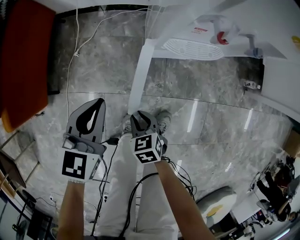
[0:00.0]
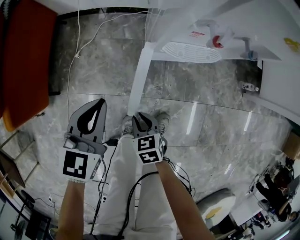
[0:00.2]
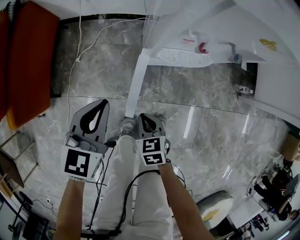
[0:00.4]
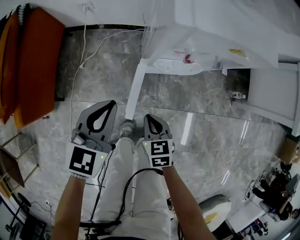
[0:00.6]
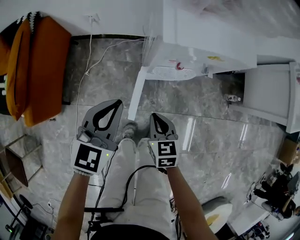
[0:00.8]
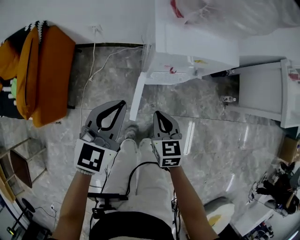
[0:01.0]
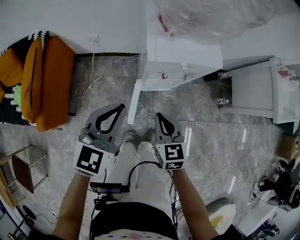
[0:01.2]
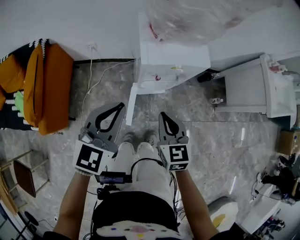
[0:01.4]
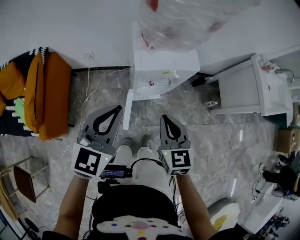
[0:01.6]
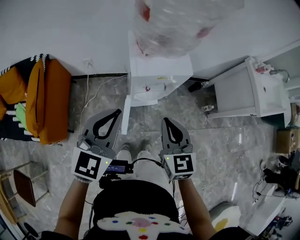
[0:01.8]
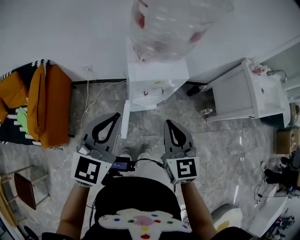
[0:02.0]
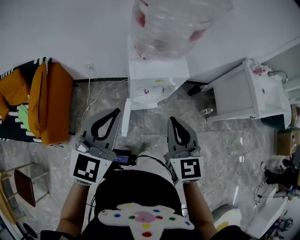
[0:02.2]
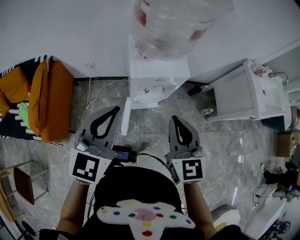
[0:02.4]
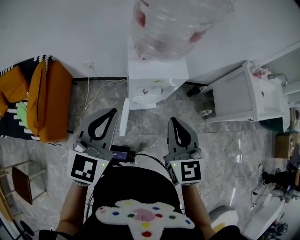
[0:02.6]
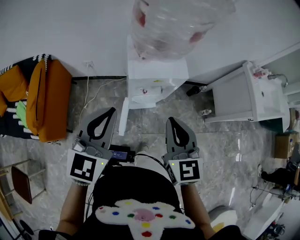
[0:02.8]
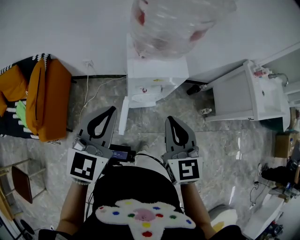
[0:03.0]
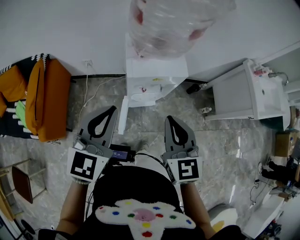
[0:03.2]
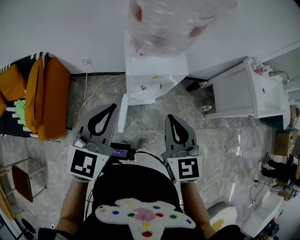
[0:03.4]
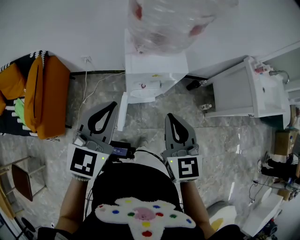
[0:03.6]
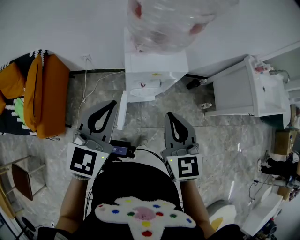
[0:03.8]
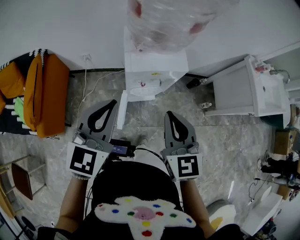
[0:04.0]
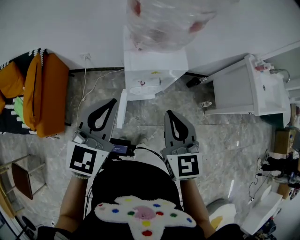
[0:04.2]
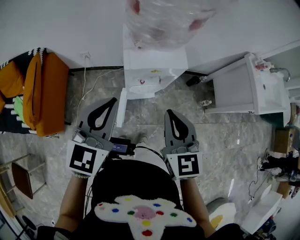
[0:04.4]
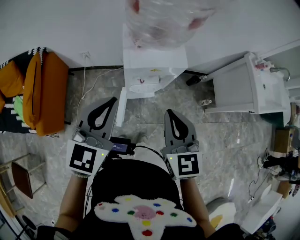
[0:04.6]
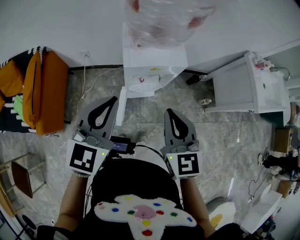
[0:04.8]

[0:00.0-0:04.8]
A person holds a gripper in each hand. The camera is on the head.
0:00.0 to 0:01.6: Both grippers move upward, roughly 40 cm. The right gripper angles its fingers upward, by approximately 30 degrees, and closes its fingers; the left gripper rotates approximately 30 degrees.
0:01.6 to 0:03.2: The left gripper moves upward, about 5 cm, while the right gripper travels upward by some 10 cm.
0:03.2 to 0:04.8: The grippers stay close to where they were, moving slightly.

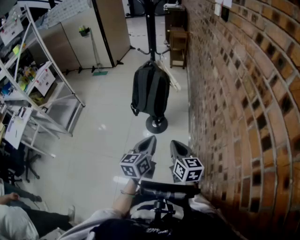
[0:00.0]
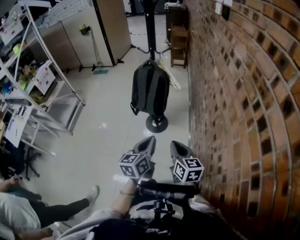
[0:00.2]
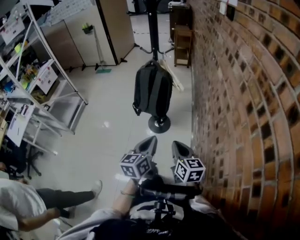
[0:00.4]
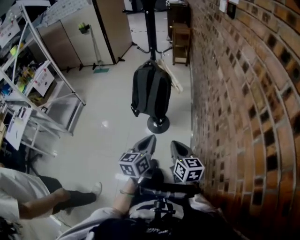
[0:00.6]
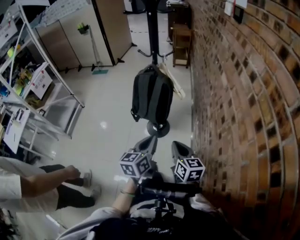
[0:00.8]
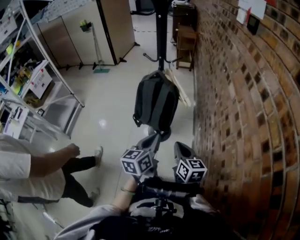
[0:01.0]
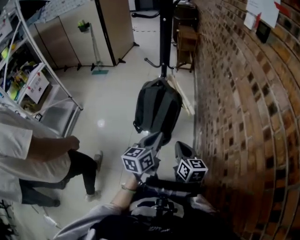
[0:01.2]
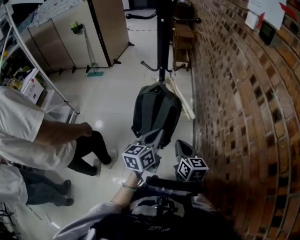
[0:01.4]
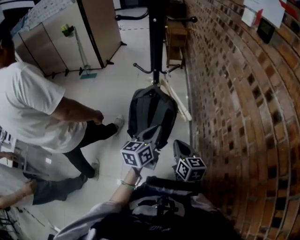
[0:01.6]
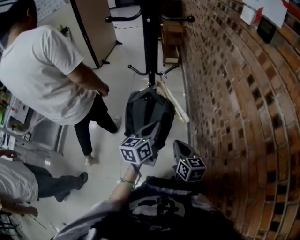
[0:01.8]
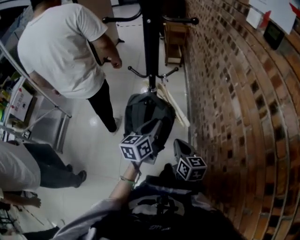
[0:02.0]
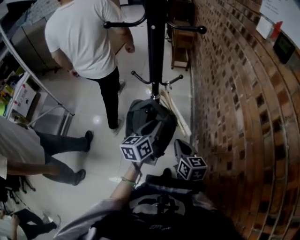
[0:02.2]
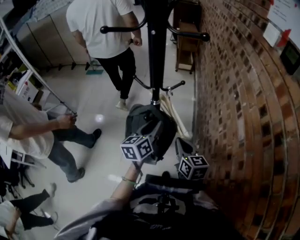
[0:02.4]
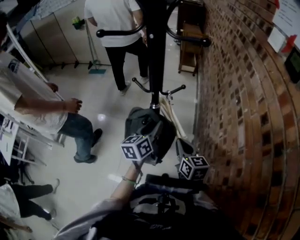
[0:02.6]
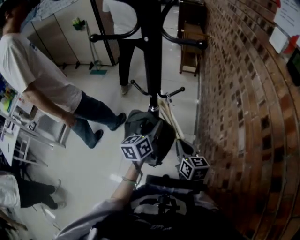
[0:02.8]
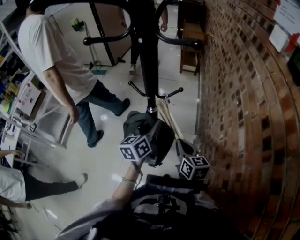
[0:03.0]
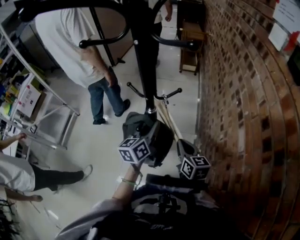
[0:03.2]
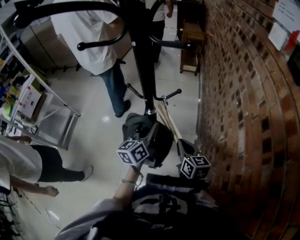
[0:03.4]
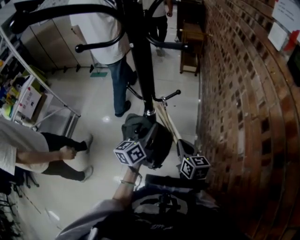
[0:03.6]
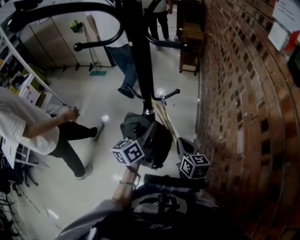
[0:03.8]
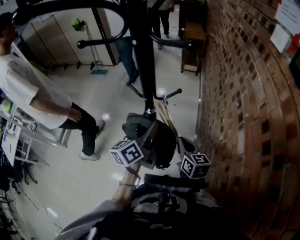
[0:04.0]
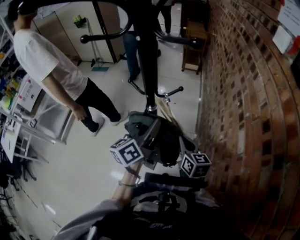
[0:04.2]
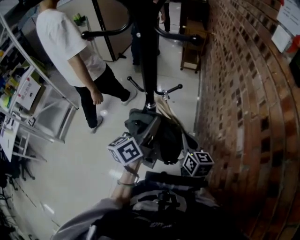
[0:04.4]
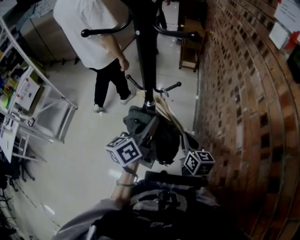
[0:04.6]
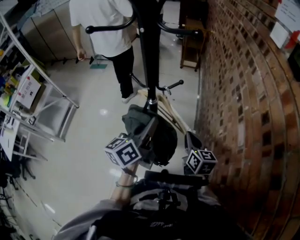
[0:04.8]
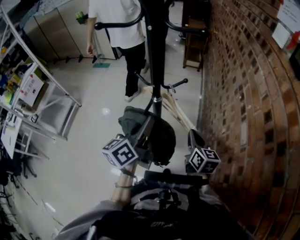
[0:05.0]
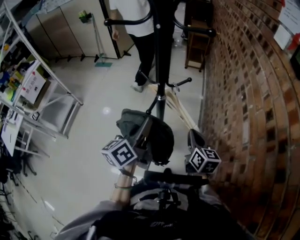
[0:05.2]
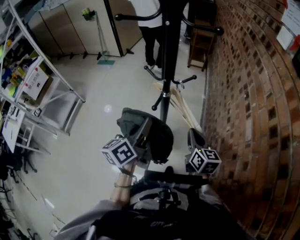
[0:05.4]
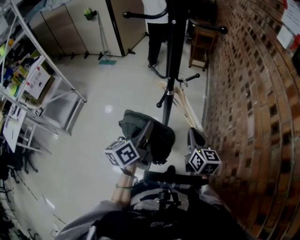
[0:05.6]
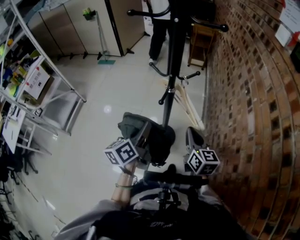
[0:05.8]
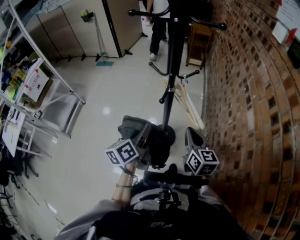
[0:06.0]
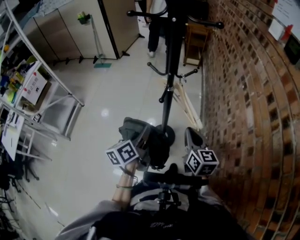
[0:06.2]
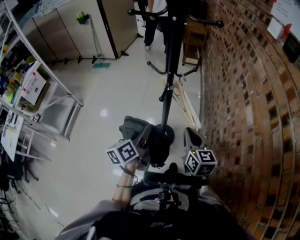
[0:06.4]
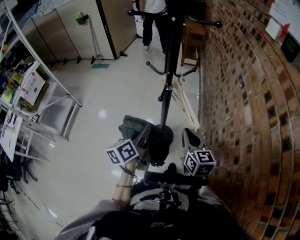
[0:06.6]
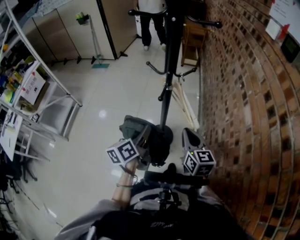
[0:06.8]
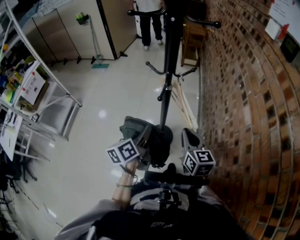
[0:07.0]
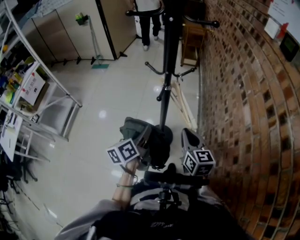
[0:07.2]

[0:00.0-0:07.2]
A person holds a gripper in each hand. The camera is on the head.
0:00.0 to 0:01.4: Both grippers move forward, roughly 30 cm.
0:01.4 to 0:02.8: The two grippers go roughly 20 cm forward. The left gripper opens.
0:02.8 to 0:04.4: The left gripper moves upward, about 10 cm, rotates about 20 degrees, and closes.
0:04.4 to 0:05.8: The right gripper travels backward and to the left by approximately 10 cm. The left gripper goes approximately 15 cm to the left, backward and downward.
0:05.8 to 0:07.2: The grippers move only a little.

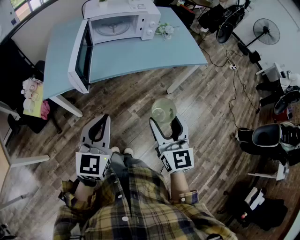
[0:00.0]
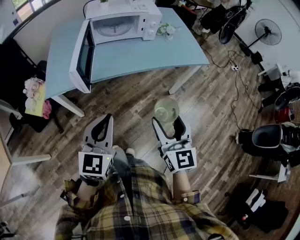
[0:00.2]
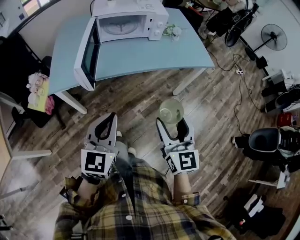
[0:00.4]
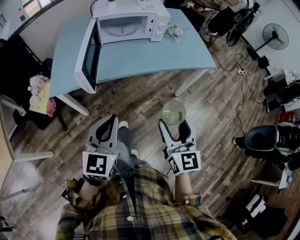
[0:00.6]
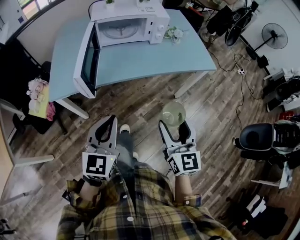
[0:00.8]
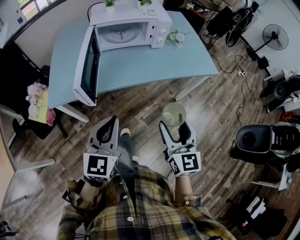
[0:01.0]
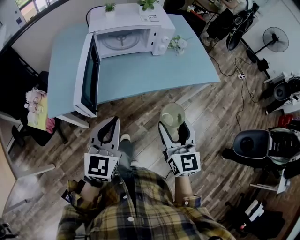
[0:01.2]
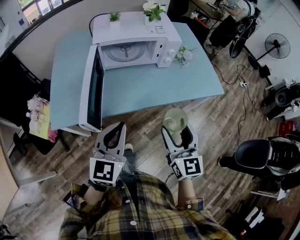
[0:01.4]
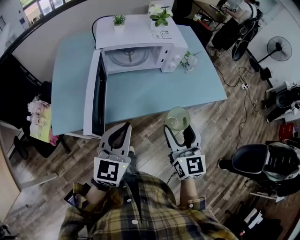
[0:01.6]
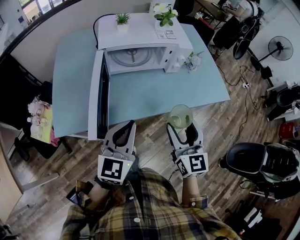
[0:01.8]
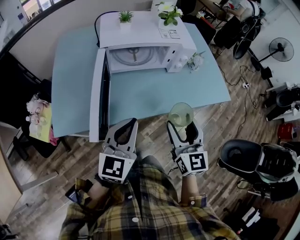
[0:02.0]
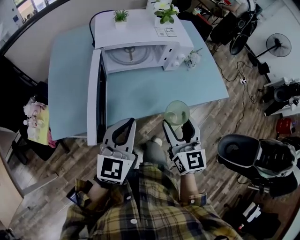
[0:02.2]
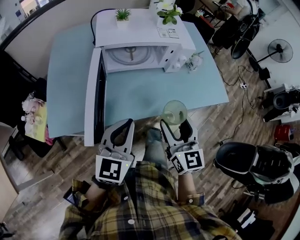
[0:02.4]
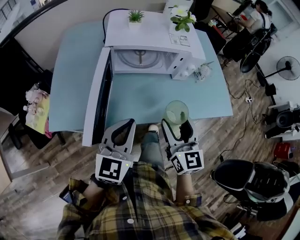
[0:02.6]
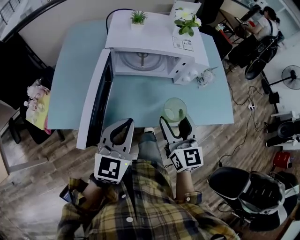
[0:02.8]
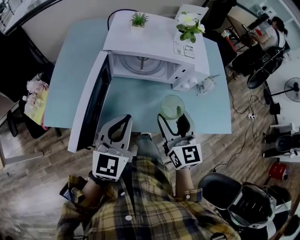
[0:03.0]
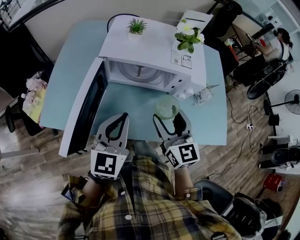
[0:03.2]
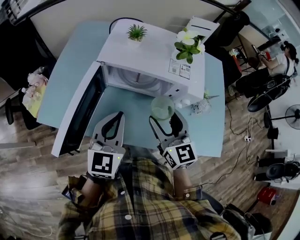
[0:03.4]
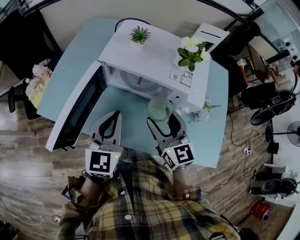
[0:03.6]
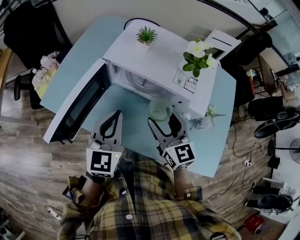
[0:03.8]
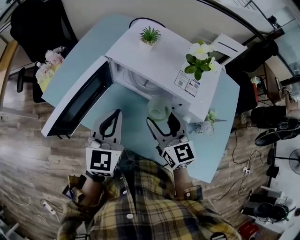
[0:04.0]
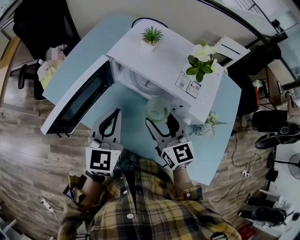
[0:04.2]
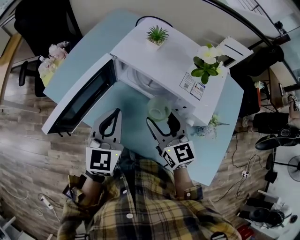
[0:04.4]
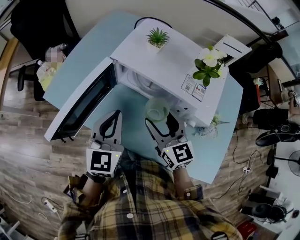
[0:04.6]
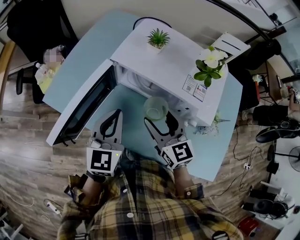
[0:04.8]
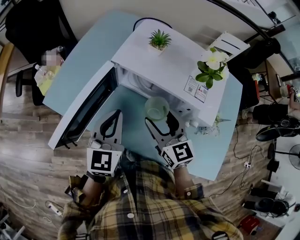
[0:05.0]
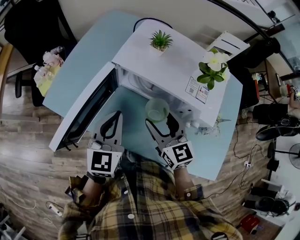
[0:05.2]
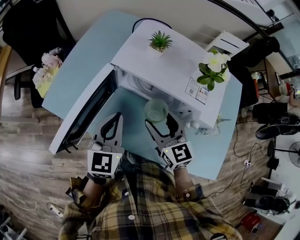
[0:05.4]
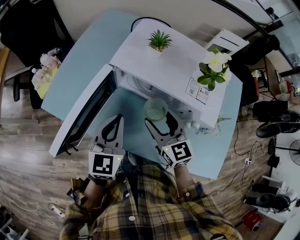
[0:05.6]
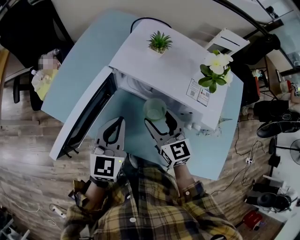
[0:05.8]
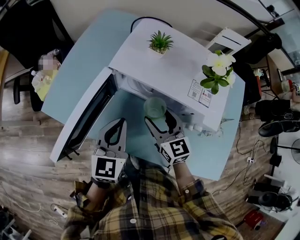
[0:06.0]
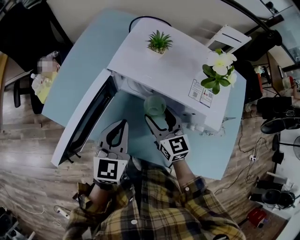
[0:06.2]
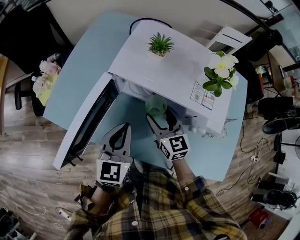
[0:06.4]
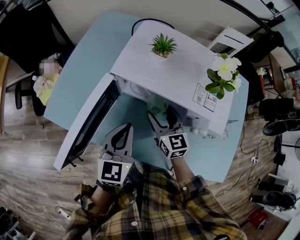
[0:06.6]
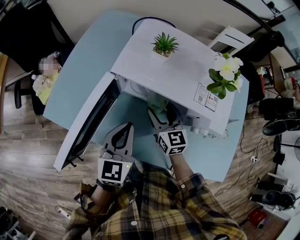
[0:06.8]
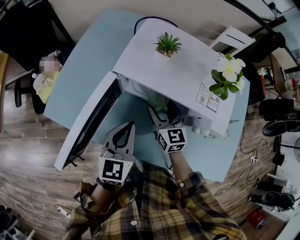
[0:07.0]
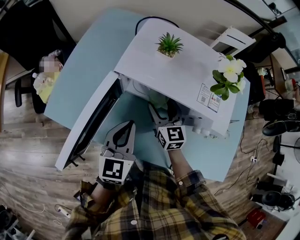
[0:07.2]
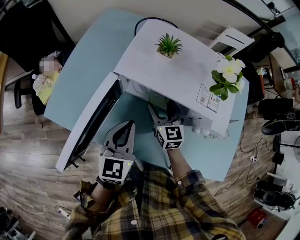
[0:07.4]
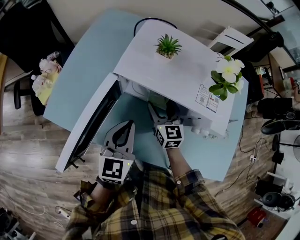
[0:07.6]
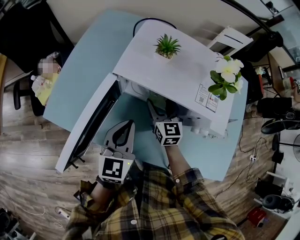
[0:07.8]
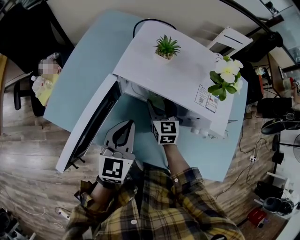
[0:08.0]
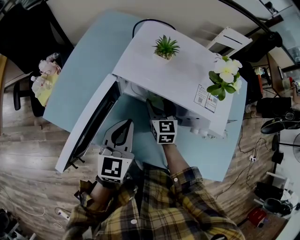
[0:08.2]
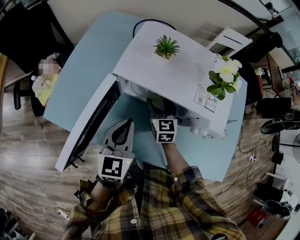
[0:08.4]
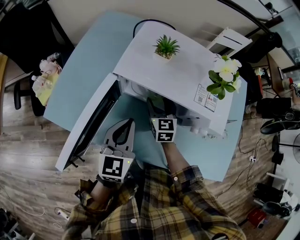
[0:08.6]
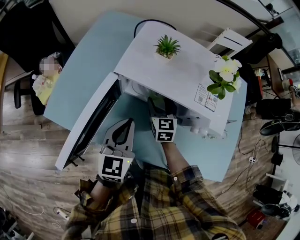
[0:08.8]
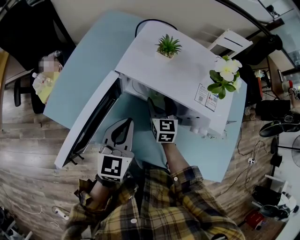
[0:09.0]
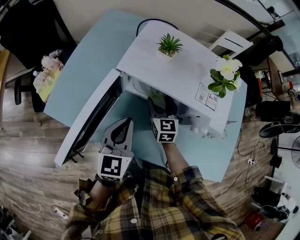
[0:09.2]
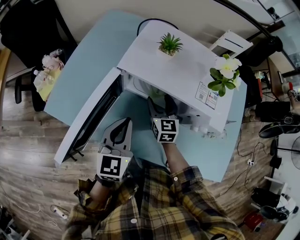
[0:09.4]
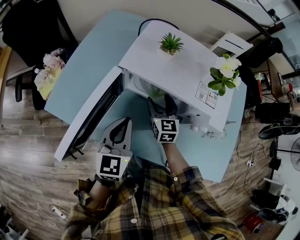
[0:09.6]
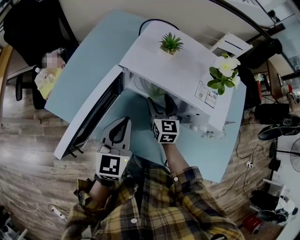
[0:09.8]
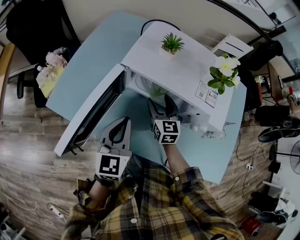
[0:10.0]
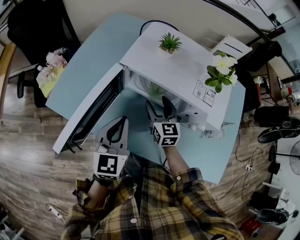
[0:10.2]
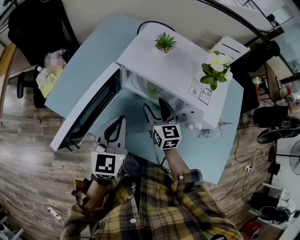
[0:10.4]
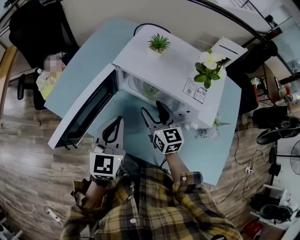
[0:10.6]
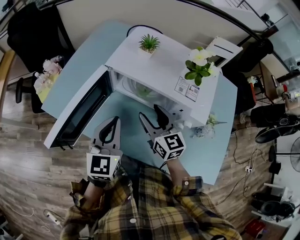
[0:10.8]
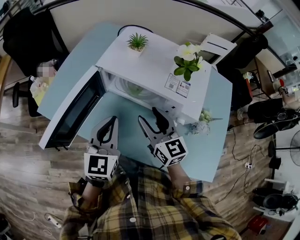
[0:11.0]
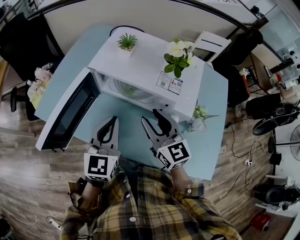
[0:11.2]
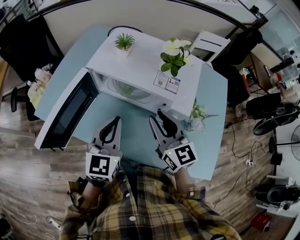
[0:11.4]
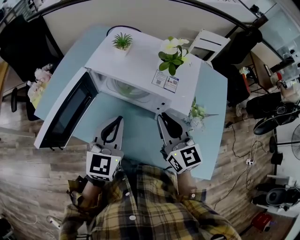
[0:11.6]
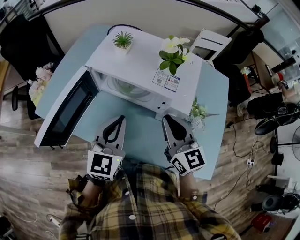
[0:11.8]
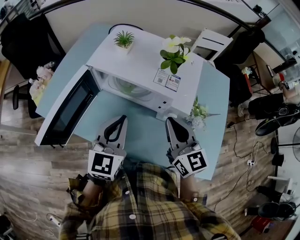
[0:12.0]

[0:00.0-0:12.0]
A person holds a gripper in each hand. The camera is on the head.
0:00.0 to 0:01.6: Both grippers travel together forward, approximately 20 cm.
0:01.6 to 0:03.0: The grippers both shift forward by some 15 cm.
0:03.0 to 0:04.4: The left gripper shifts by about 10 cm, and swivels approximately 30 degrees. Meanwhile the right gripper ends up some 10 cm from where it was, and rotates some 40 degrees.
0:04.4 to 0:06.0: The right gripper goes about 10 cm downward and forward.
0:06.0 to 0:07.6: The right gripper shifts approximately 10 cm forward and downward.
0:07.6 to 0:09.0: There are only small adjustments of the grippers.
0:09.0 to 0:10.4: The right gripper shifts about 5 cm backward.
0:10.4 to 0:12.0: The left gripper goes about 10 cm to the right. The right gripper heads to the right, upward and backward, covering some 25 cm, and closes up.
